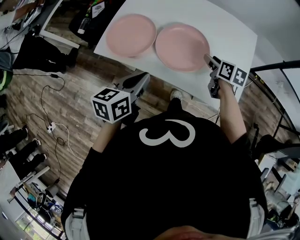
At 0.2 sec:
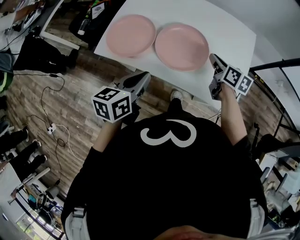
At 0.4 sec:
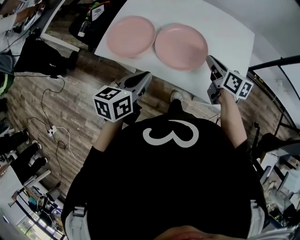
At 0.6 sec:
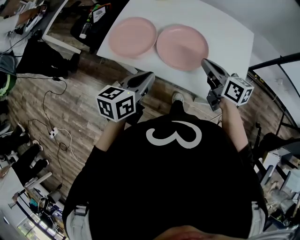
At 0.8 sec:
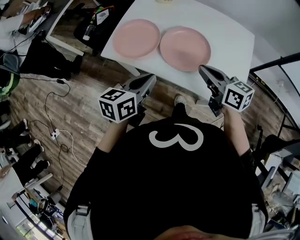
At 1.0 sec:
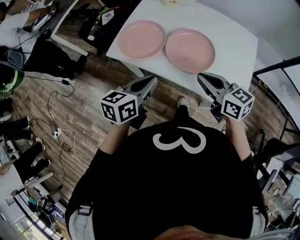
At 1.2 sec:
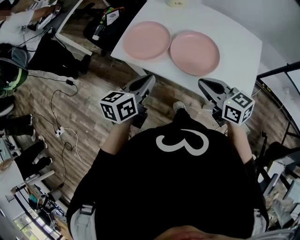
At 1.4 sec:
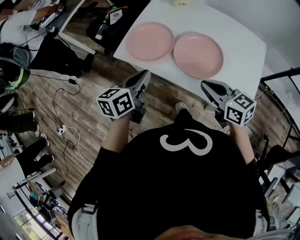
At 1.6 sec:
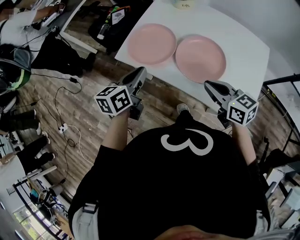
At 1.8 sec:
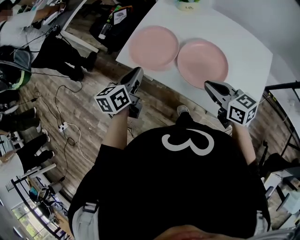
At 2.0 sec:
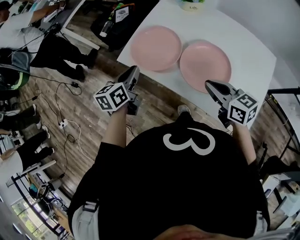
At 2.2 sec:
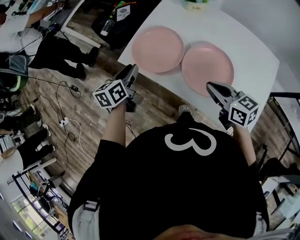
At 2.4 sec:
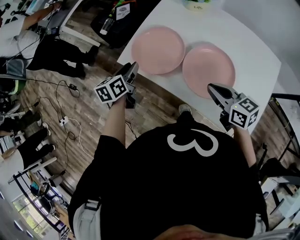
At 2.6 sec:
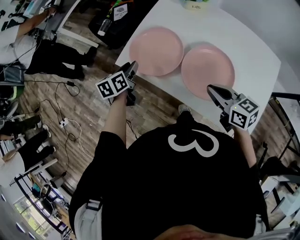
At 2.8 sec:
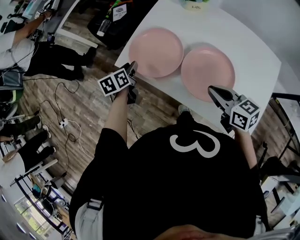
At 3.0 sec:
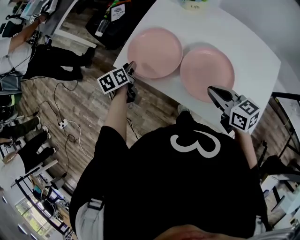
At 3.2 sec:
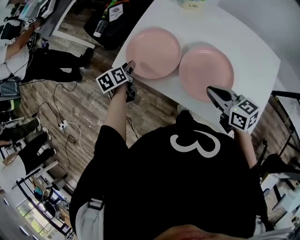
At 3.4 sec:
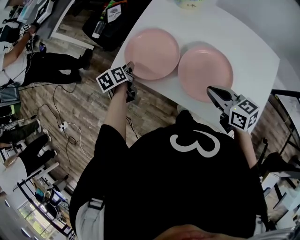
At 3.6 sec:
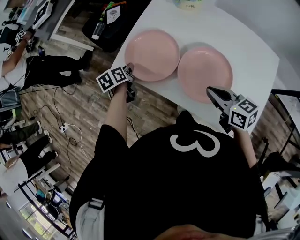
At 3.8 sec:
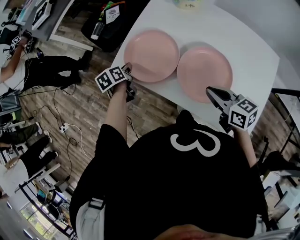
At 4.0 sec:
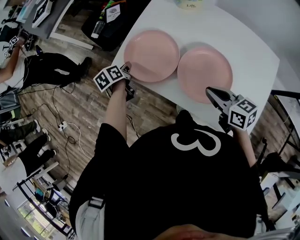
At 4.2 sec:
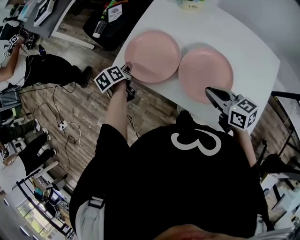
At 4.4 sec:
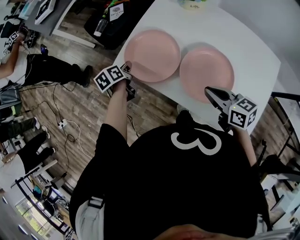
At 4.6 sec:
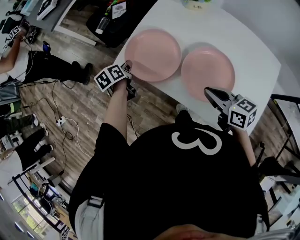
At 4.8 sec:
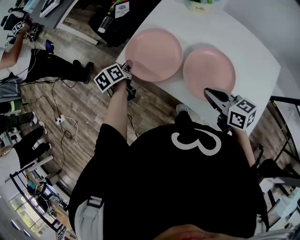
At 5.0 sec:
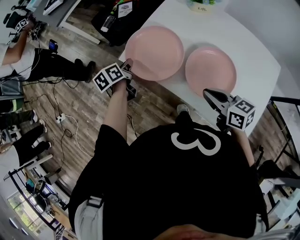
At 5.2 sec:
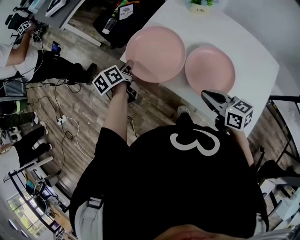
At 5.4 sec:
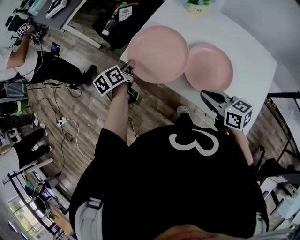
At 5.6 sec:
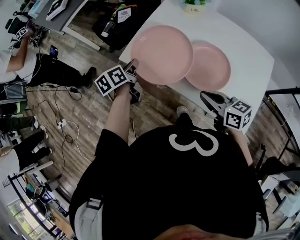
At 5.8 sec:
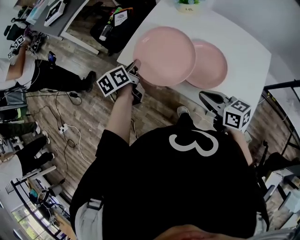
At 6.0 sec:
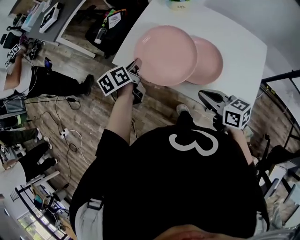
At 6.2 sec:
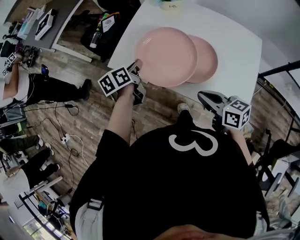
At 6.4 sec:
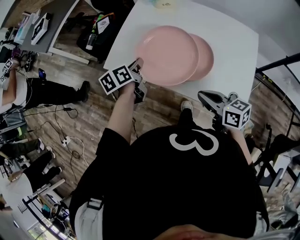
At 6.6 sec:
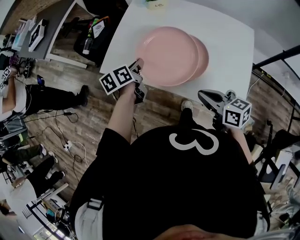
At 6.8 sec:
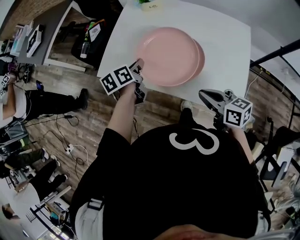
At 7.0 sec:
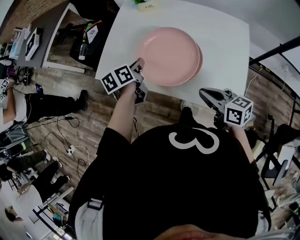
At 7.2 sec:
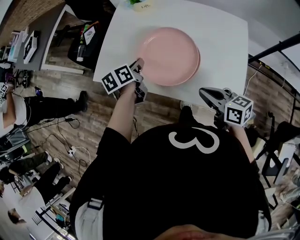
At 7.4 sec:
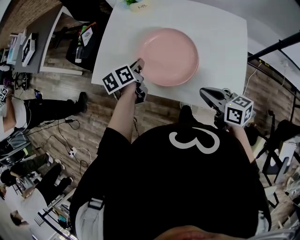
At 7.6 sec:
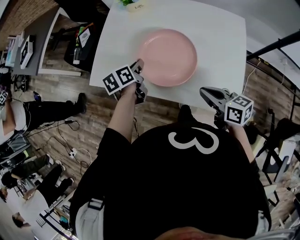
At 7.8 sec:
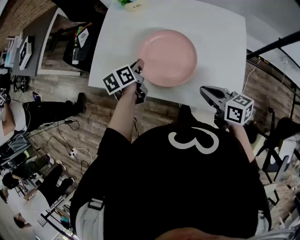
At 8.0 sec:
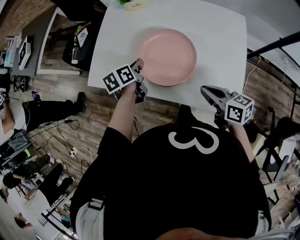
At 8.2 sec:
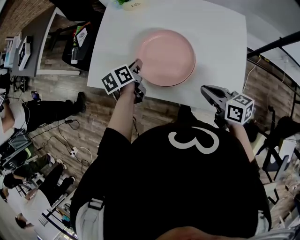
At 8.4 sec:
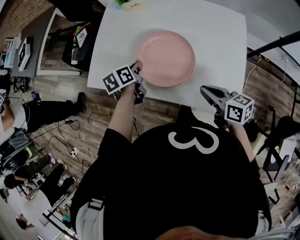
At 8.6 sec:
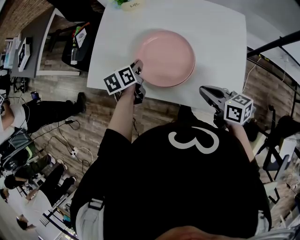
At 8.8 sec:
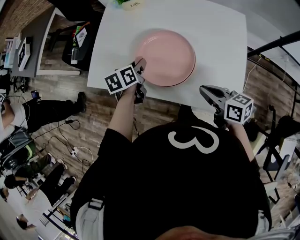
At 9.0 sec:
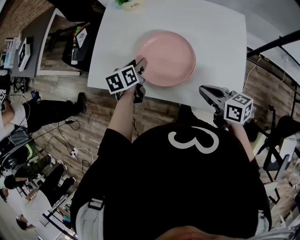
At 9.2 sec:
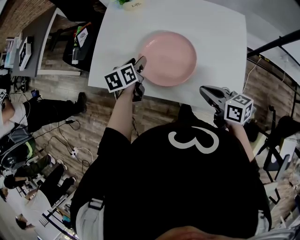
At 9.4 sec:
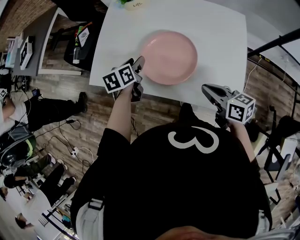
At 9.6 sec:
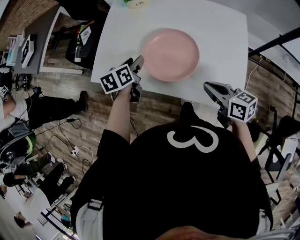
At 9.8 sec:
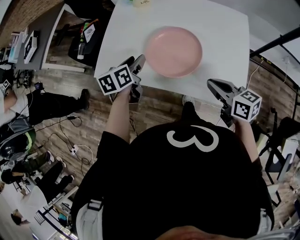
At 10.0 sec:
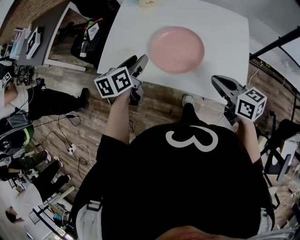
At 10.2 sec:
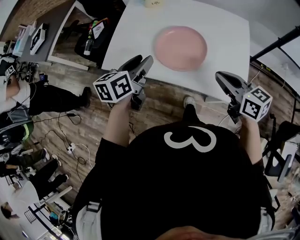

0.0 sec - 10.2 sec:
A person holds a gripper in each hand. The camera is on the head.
0.0 sec - 1.4 sec: The right gripper goes roughly 20 cm to the left, backward and upward, changes its angle by about 40 degrees, and closes. Meanwhile the left gripper goes some 5 cm to the left.
1.4 sec - 3.0 sec: The right gripper is displaced forward by roughly 10 cm. The left gripper goes roughly 25 cm forward, downward and to the left, swivels roughly 30 degrees, and opens.
3.0 sec - 4.4 sec: The left gripper closes.
4.4 sec - 5.8 sec: The right gripper shifts approximately 10 cm backward and to the left, while the left gripper moves upward and backward, about 15 cm.
5.8 sec - 7.2 sec: The right gripper shifts roughly 10 cm to the right. Meanwhile the left gripper shifts some 15 cm to the right.
7.2 sec - 8.8 sec: The left gripper moves approximately 5 cm, and opens its fingers.
8.8 sec - 10.2 sec: The left gripper travels upward and backward by some 20 cm, and changes its angle by roughly 20 degrees. The right gripper heads upward, covering about 10 cm.

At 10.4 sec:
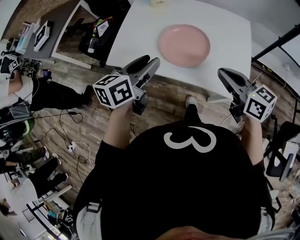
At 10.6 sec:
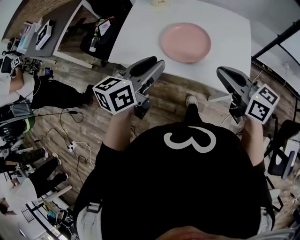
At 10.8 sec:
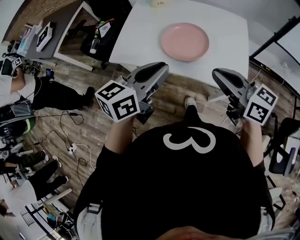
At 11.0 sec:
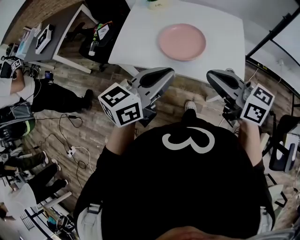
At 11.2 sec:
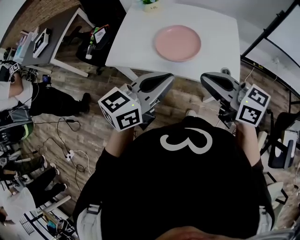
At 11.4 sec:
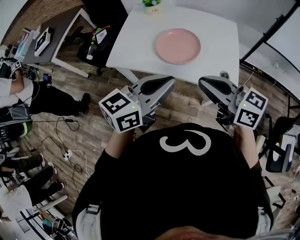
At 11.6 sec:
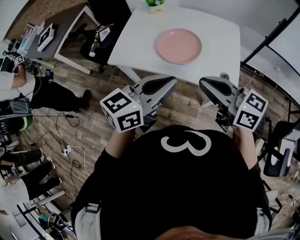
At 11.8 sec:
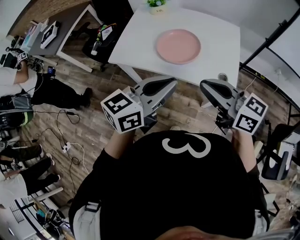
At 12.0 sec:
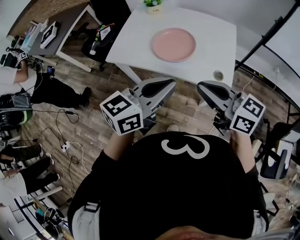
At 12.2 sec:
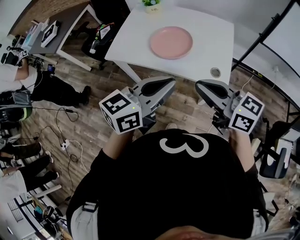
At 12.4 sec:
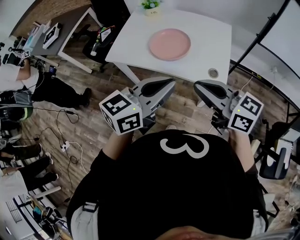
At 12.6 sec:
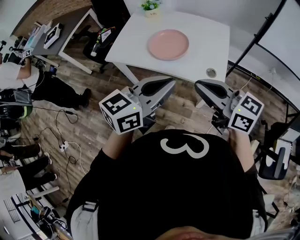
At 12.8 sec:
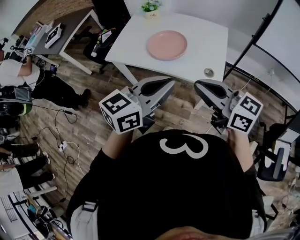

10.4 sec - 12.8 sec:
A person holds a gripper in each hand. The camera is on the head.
10.4 sec - 11.6 sec: The left gripper heads backward, to the right and upward, covering roughly 20 cm, rotates some 20 degrees, and closes up; the right gripper moves backward and upward, about 15 cm.
11.6 sec - 12.8 sec: Both grippers travel together backward and to the right, approximately 10 cm.

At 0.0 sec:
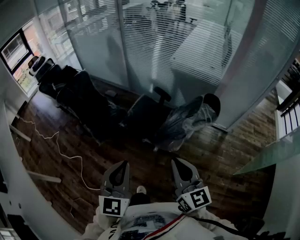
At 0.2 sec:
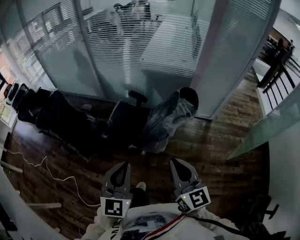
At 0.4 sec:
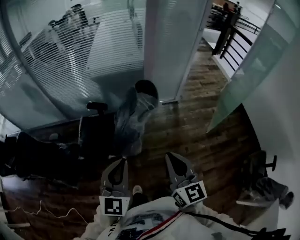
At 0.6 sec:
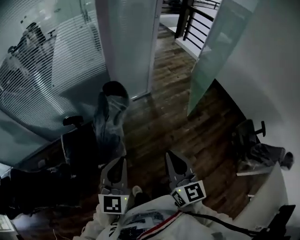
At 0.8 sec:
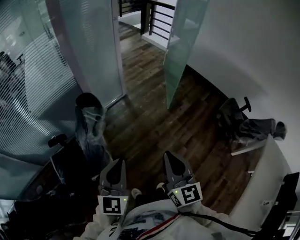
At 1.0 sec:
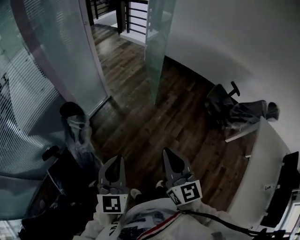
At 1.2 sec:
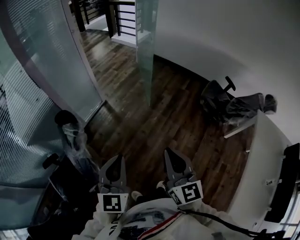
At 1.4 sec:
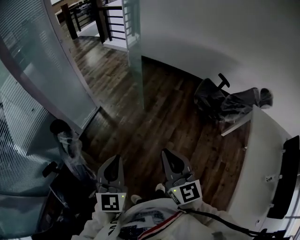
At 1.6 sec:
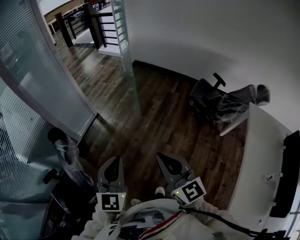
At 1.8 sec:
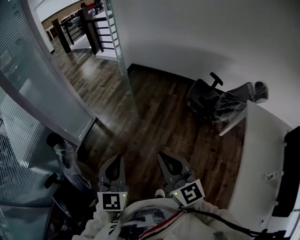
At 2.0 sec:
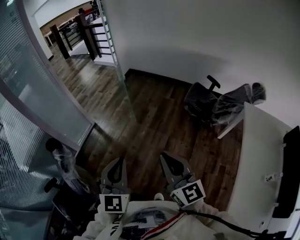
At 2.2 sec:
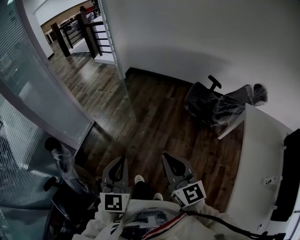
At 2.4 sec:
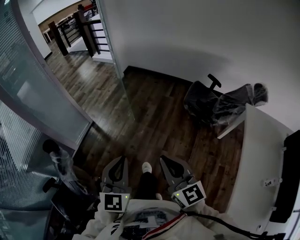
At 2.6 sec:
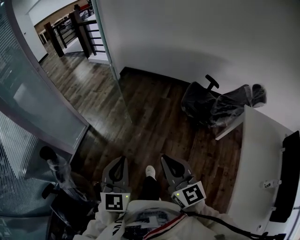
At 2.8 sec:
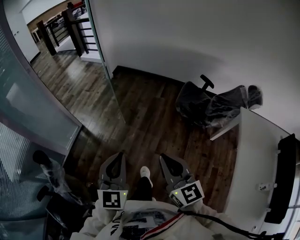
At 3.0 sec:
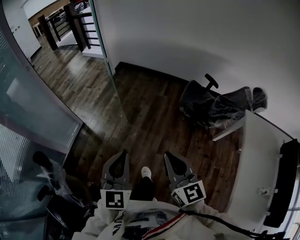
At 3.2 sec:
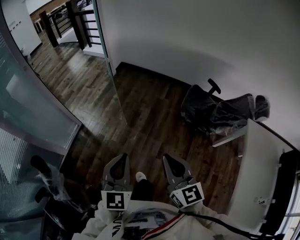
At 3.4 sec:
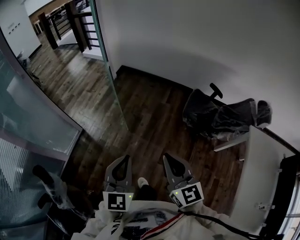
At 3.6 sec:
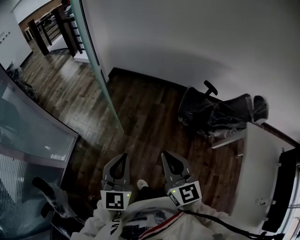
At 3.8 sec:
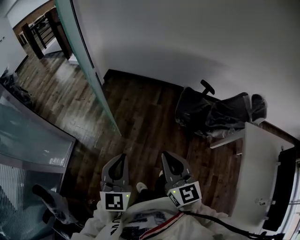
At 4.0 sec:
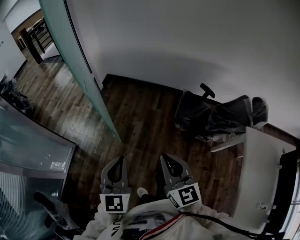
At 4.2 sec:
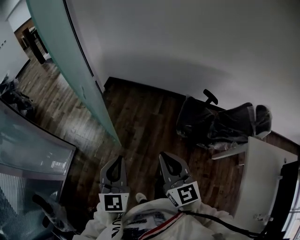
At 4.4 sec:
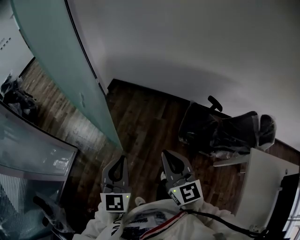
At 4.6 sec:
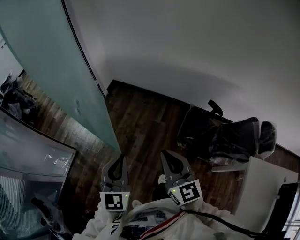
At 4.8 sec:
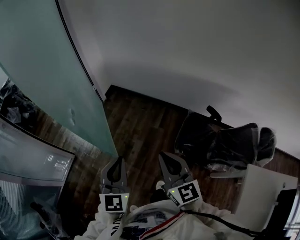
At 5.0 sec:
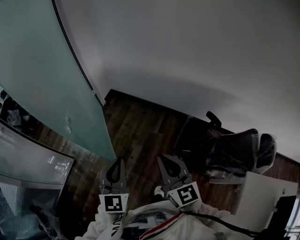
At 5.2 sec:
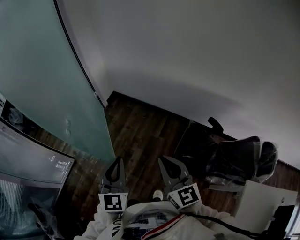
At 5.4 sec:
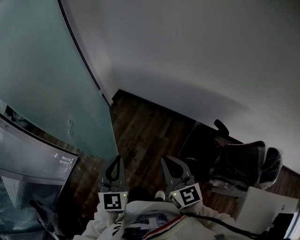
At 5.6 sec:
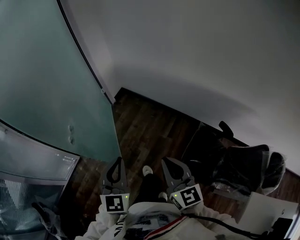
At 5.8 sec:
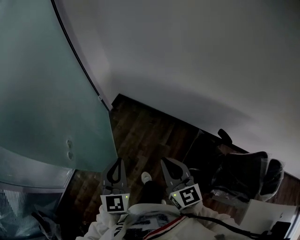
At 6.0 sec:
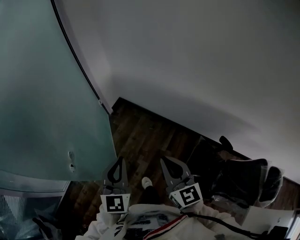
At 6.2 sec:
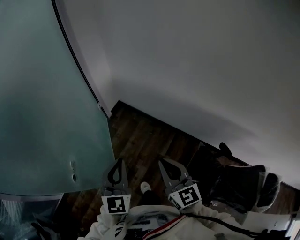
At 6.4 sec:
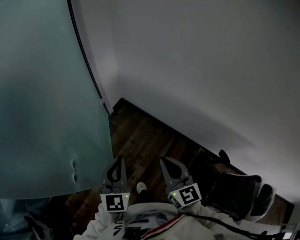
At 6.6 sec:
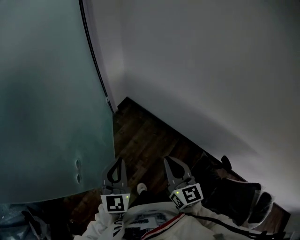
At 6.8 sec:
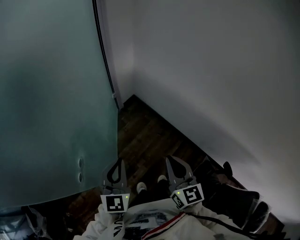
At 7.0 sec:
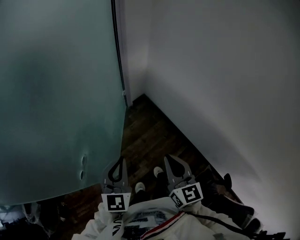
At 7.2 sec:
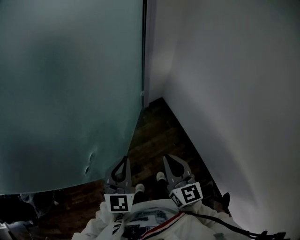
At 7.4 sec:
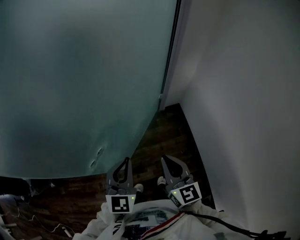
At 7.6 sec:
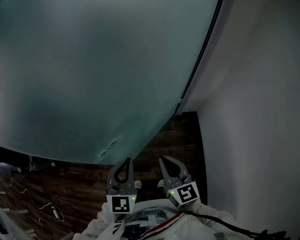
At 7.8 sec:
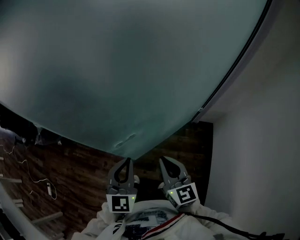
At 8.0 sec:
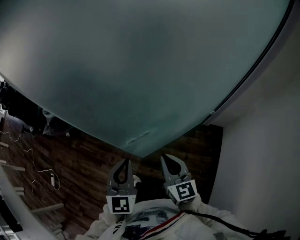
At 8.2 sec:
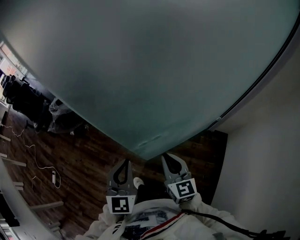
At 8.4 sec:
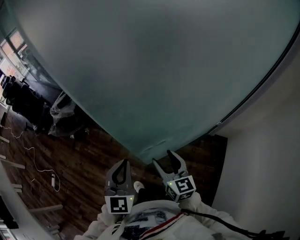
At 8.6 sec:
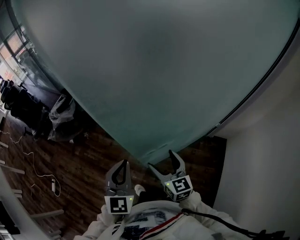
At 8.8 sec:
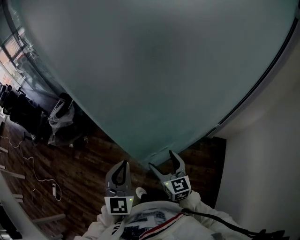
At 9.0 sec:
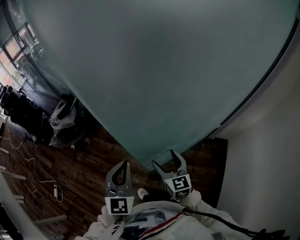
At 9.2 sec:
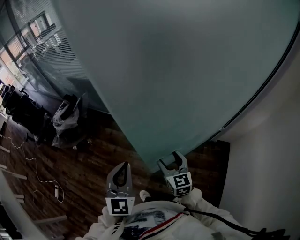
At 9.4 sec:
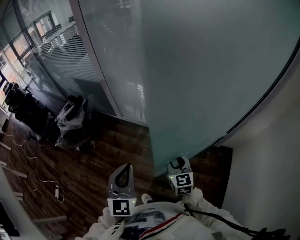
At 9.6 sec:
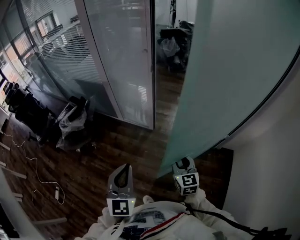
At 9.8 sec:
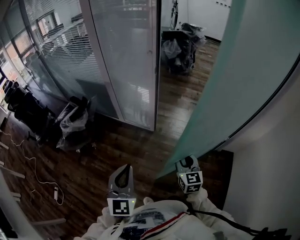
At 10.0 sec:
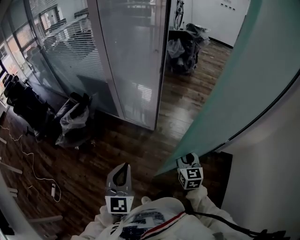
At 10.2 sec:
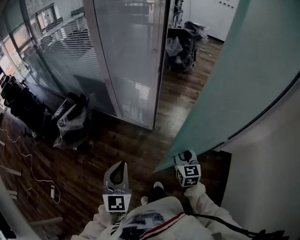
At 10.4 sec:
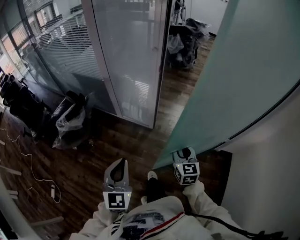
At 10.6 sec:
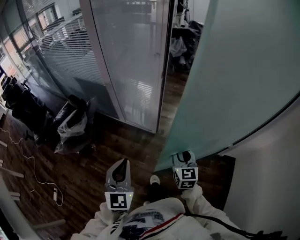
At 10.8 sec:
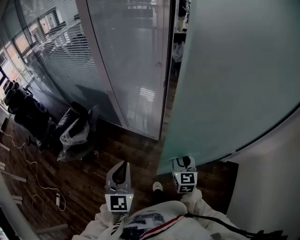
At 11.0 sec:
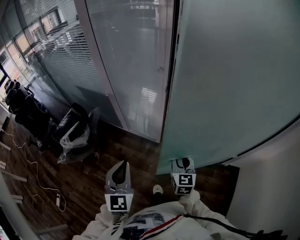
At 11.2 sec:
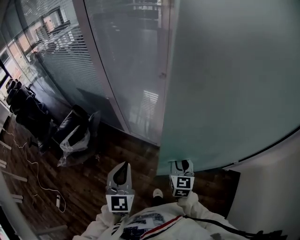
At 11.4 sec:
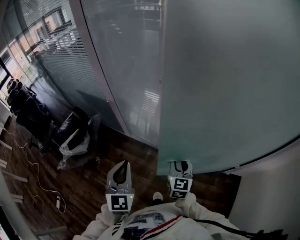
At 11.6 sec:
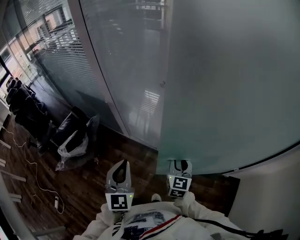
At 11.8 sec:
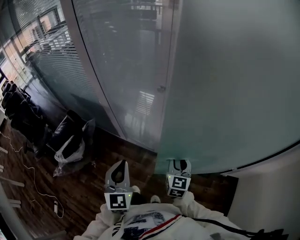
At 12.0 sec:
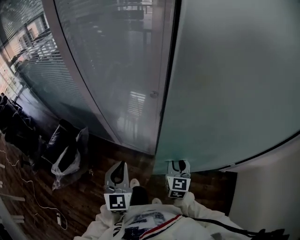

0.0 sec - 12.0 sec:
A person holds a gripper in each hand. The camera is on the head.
0.0 sec - 1.6 sec: The left gripper changes place by some 40 cm, and swivels some 80 degrees. The right gripper changes place by about 40 cm, and rotates roughly 70 degrees.
1.6 sec - 3.0 sec: Both grippers move forward and to the right, roughly 20 cm.
3.0 sec - 4.4 sec: The two grippers go roughly 35 cm forward.
4.4 sec - 6.0 sec: The grippers both shift forward by some 35 cm.
6.0 sec - 7.6 sec: The right gripper shifts by some 30 cm, and turns by approximately 60 degrees; the left gripper ends up some 20 cm from where it was, and rotates about 50 degrees.
7.6 sec - 9.0 sec: The left gripper travels to the left by some 20 cm, and rotates approximately 20 degrees. The right gripper moves to the left and forward, some 20 cm, and opens up.
9.0 sec - 10.4 sec: The left gripper shifts some 15 cm to the left and forward. The right gripper heads forward, covering about 15 cm, and closes its fingers.
10.4 sec - 12.0 sec: Both grippers move forward, approximately 25 cm.
